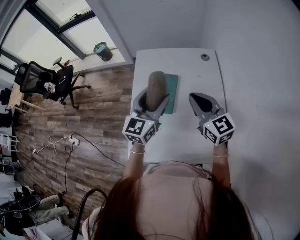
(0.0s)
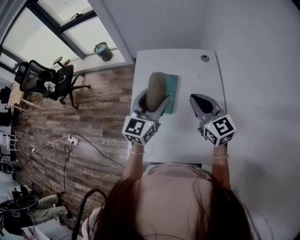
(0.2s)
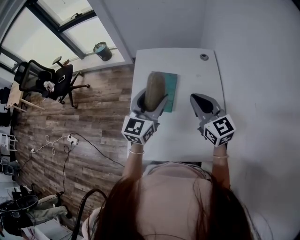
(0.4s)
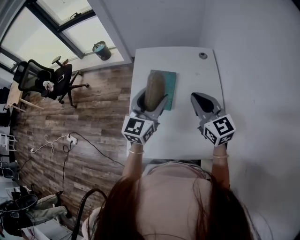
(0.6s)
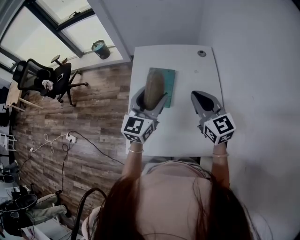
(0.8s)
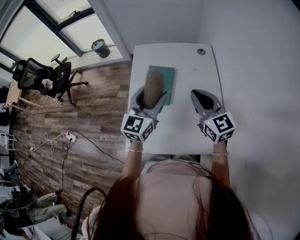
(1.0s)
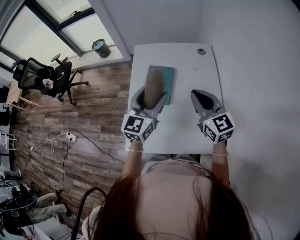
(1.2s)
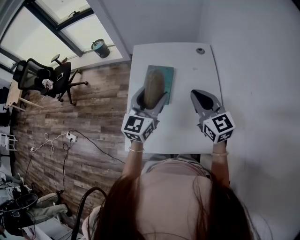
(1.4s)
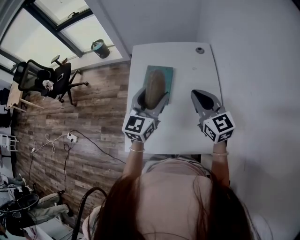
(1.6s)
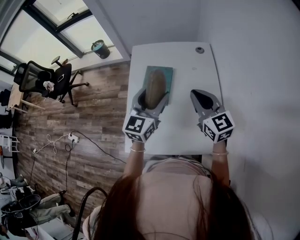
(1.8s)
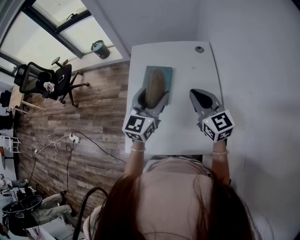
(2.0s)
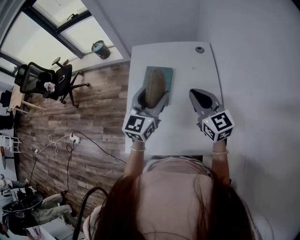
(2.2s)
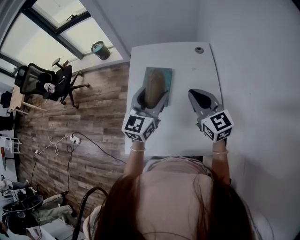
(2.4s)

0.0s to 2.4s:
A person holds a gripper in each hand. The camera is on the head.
0.0s to 2.4s: The grippers move only a little.

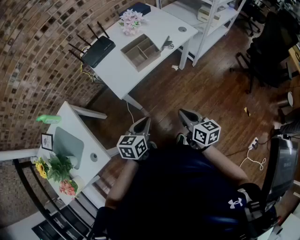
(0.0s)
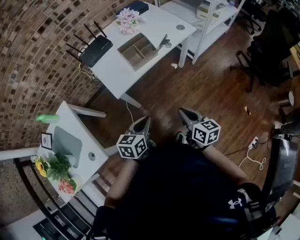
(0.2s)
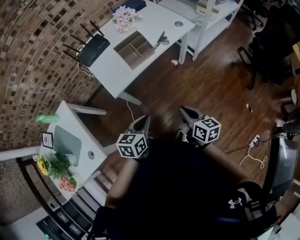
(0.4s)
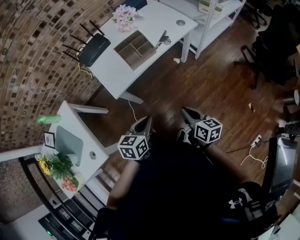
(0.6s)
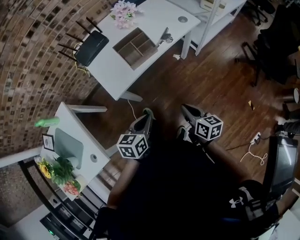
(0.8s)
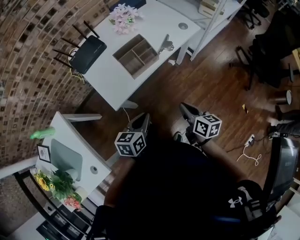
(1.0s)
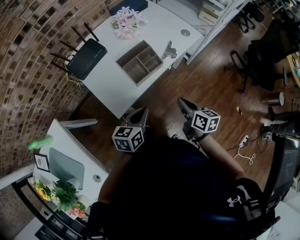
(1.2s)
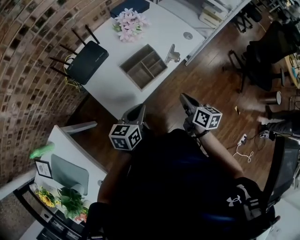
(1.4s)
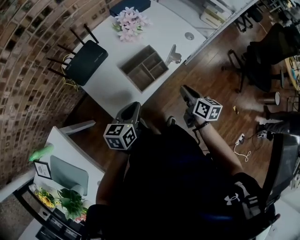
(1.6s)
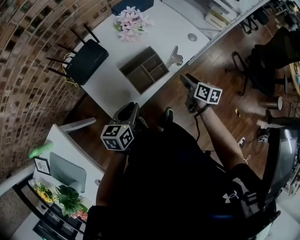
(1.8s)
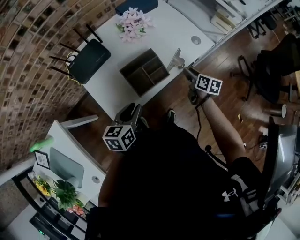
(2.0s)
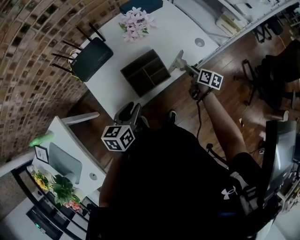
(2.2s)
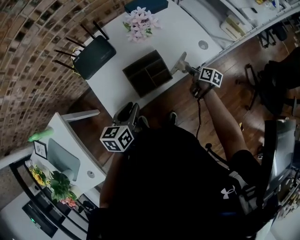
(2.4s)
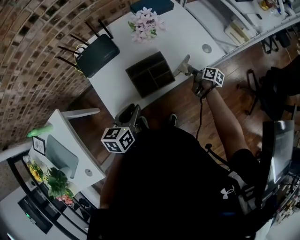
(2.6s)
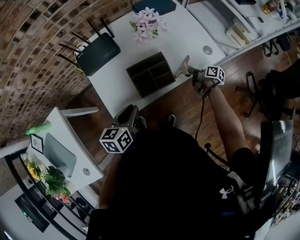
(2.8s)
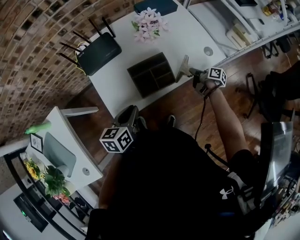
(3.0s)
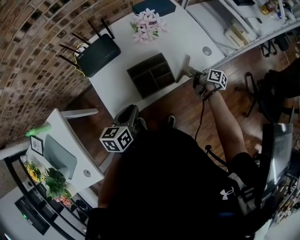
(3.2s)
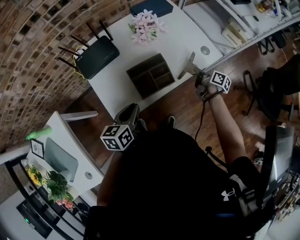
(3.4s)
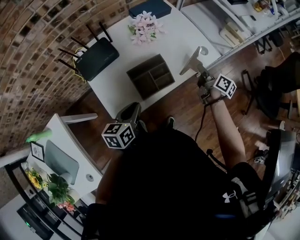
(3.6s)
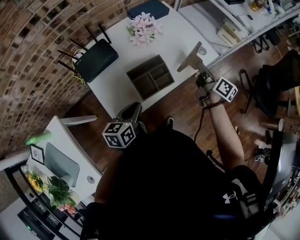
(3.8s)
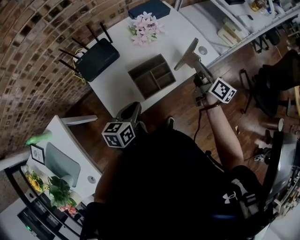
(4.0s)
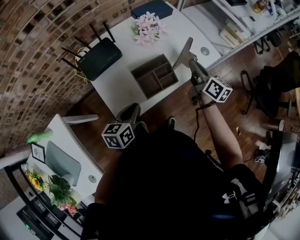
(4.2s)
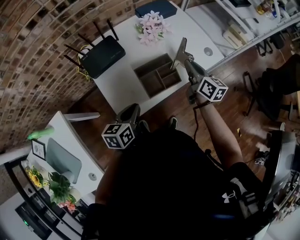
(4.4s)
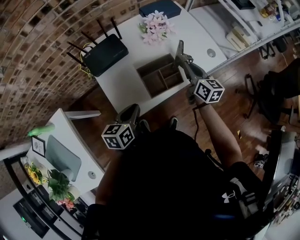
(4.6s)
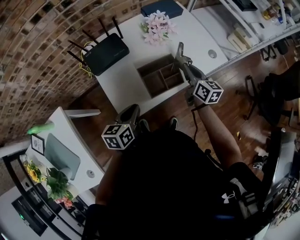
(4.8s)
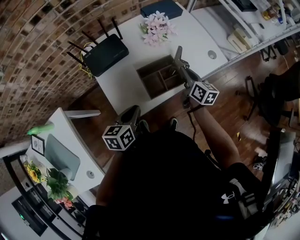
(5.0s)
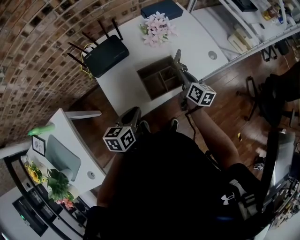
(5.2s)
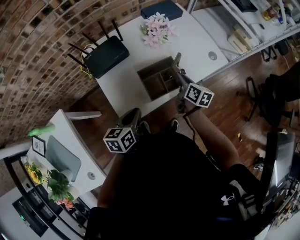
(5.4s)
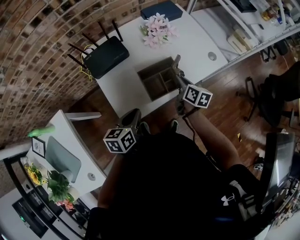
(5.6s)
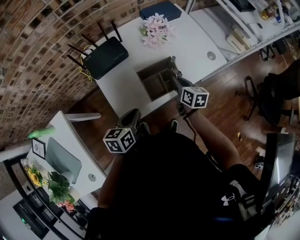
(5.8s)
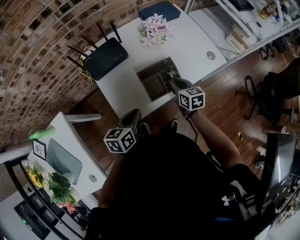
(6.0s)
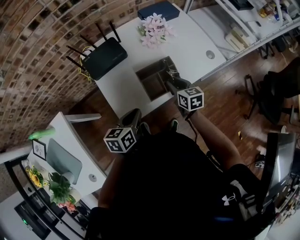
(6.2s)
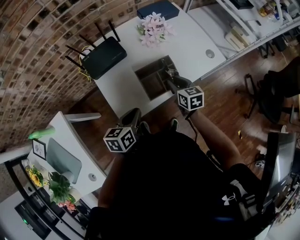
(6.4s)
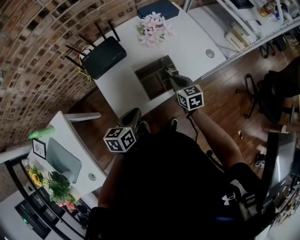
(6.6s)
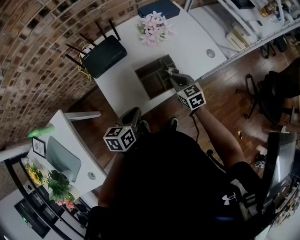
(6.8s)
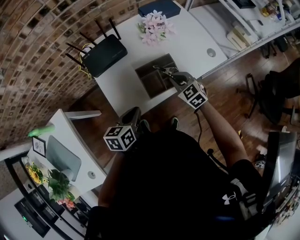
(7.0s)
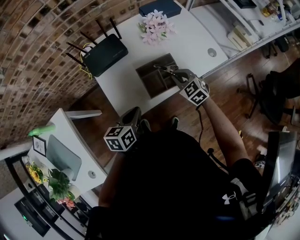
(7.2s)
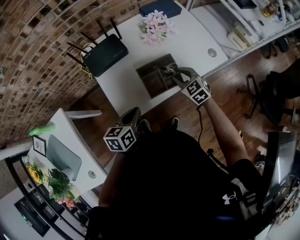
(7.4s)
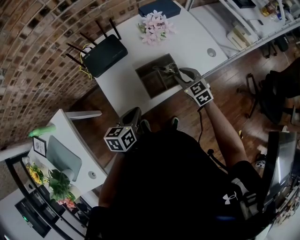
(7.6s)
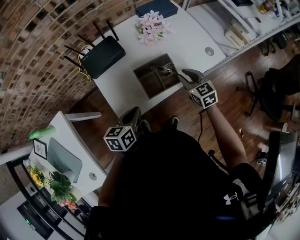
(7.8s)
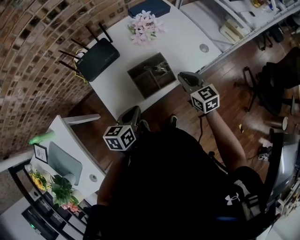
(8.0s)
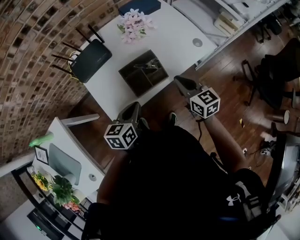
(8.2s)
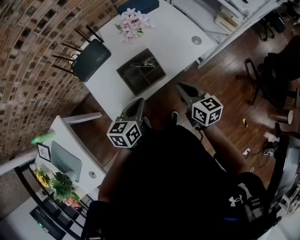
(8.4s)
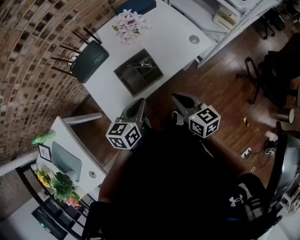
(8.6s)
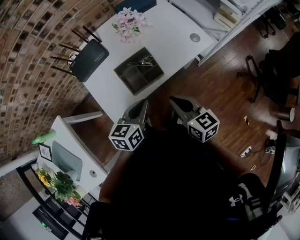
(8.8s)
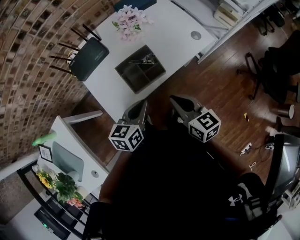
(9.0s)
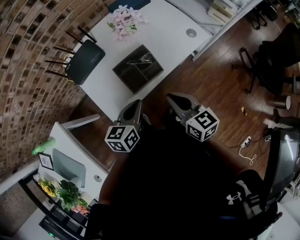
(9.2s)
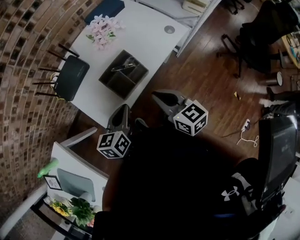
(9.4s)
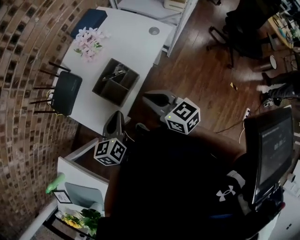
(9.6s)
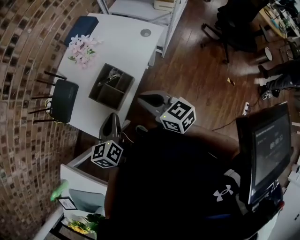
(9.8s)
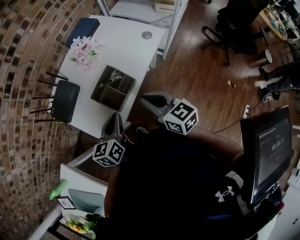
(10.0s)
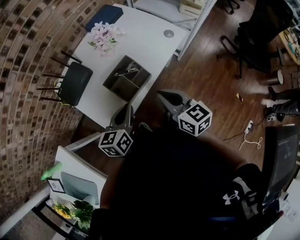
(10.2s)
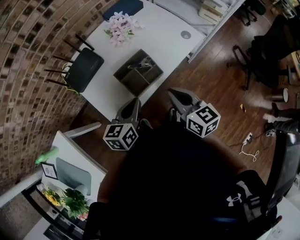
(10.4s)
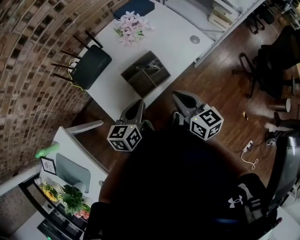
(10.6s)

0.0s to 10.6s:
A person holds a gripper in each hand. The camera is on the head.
0.0s to 1.6s: The two grippers go approximately 25 cm forward.
1.6s to 3.0s: The right gripper is displaced forward, downward and to the right by some 25 cm, rotates approximately 40 degrees, and opens and closes again.
3.0s to 4.6s: The right gripper is displaced upward and to the left by roughly 25 cm, and twists some 50 degrees counterclockwise, seen from behind.
4.6s to 6.0s: The right gripper shifts about 10 cm downward and to the left, and rotates roughly 20 degrees.
6.0s to 7.6s: The right gripper turns by roughly 30 degrees, and opens up.
7.6s to 9.0s: The left gripper is displaced to the right by approximately 10 cm, while the right gripper is displaced backward and upward by roughly 20 cm, rotates about 40 degrees, and closes its fingers.
9.0s to 10.6s: The left gripper shifts by approximately 5 cm.

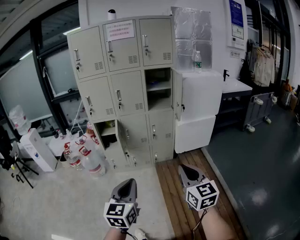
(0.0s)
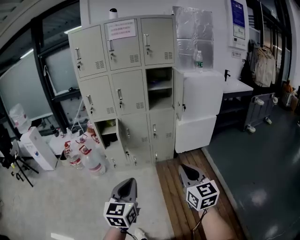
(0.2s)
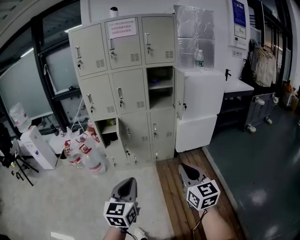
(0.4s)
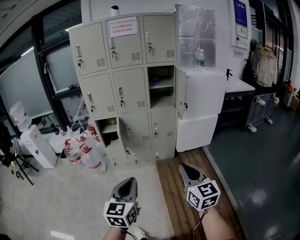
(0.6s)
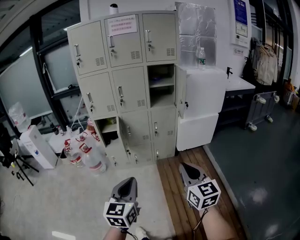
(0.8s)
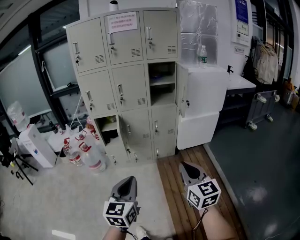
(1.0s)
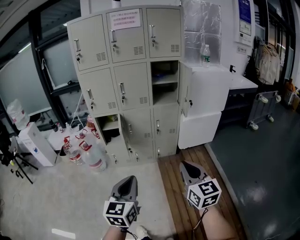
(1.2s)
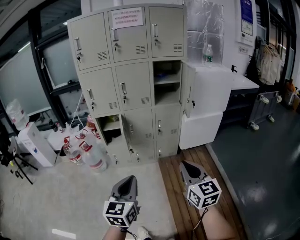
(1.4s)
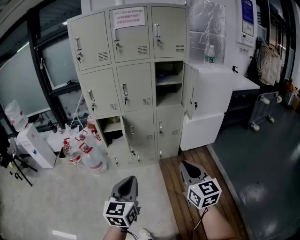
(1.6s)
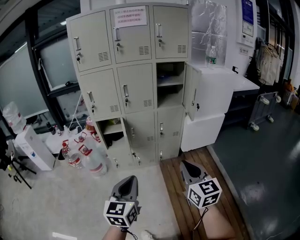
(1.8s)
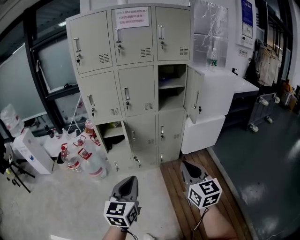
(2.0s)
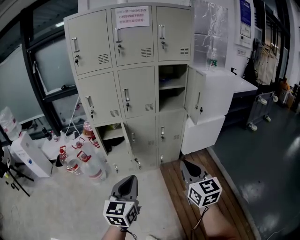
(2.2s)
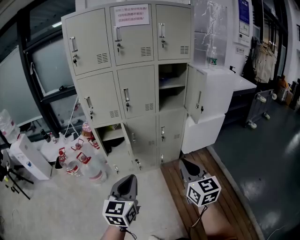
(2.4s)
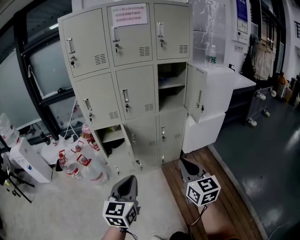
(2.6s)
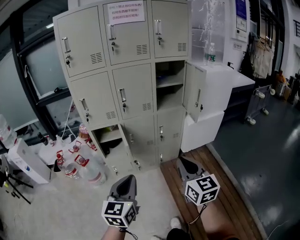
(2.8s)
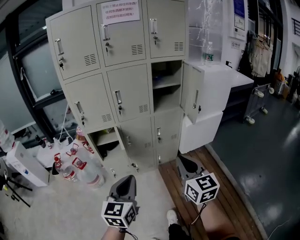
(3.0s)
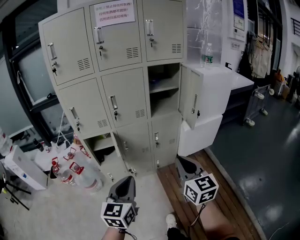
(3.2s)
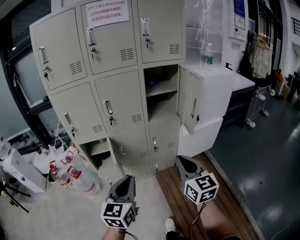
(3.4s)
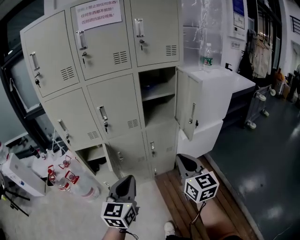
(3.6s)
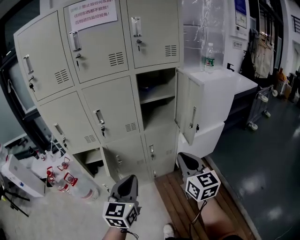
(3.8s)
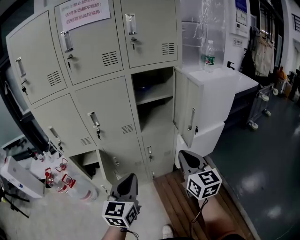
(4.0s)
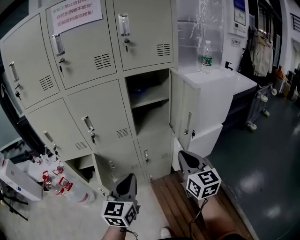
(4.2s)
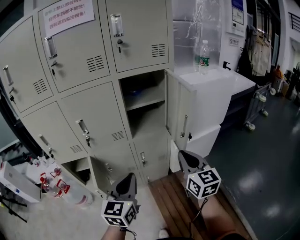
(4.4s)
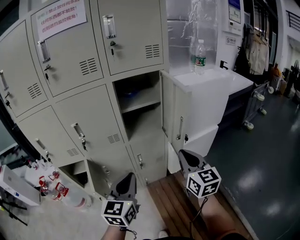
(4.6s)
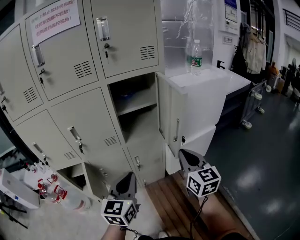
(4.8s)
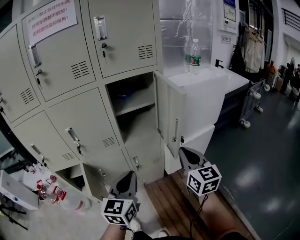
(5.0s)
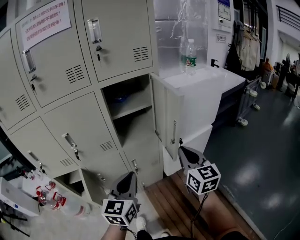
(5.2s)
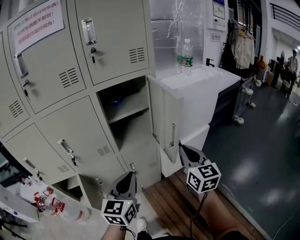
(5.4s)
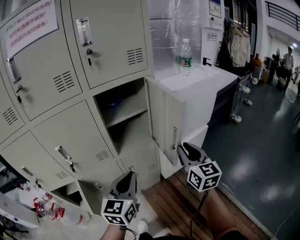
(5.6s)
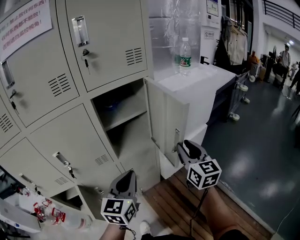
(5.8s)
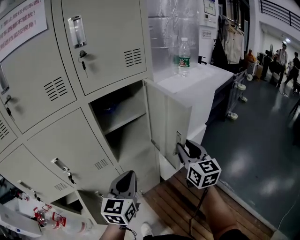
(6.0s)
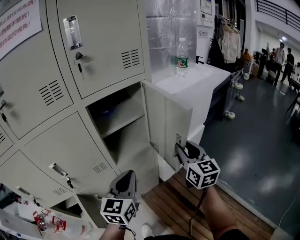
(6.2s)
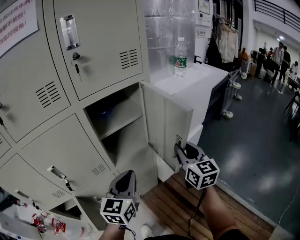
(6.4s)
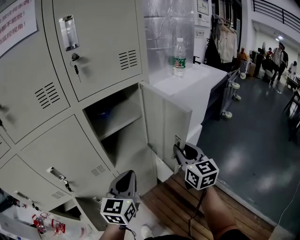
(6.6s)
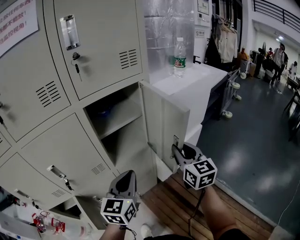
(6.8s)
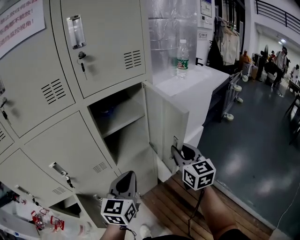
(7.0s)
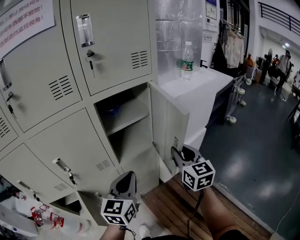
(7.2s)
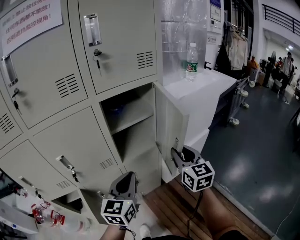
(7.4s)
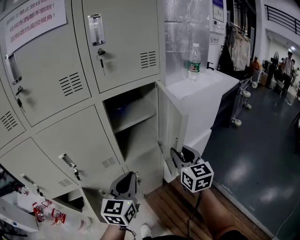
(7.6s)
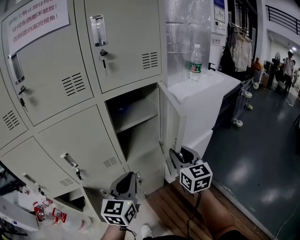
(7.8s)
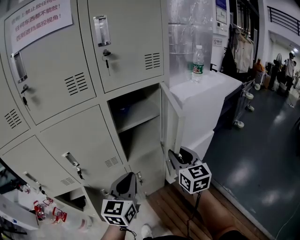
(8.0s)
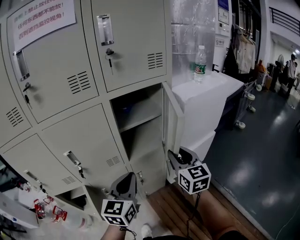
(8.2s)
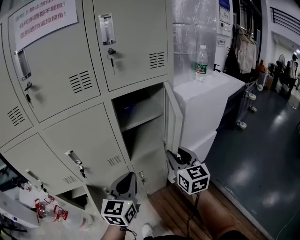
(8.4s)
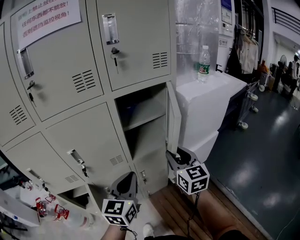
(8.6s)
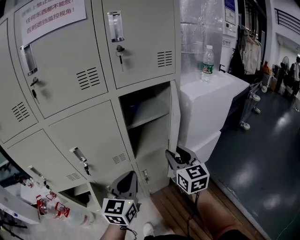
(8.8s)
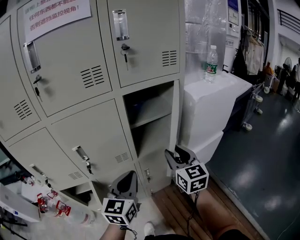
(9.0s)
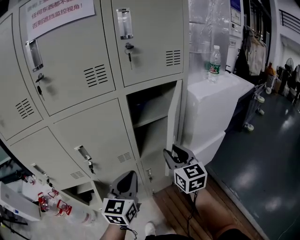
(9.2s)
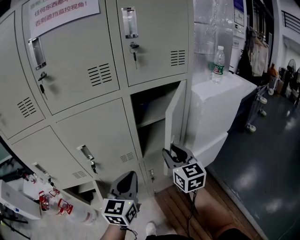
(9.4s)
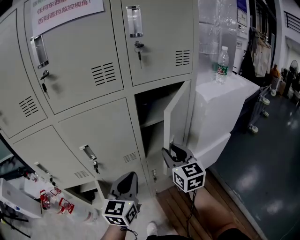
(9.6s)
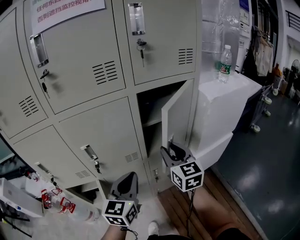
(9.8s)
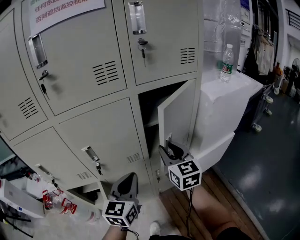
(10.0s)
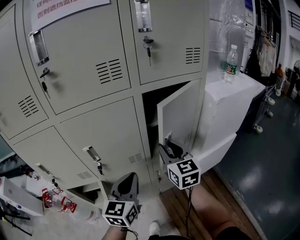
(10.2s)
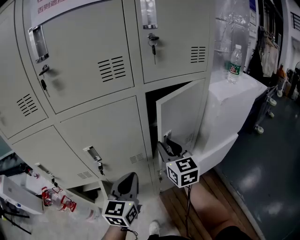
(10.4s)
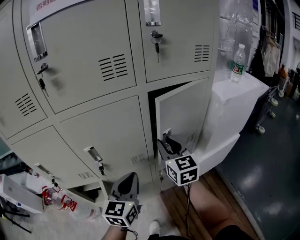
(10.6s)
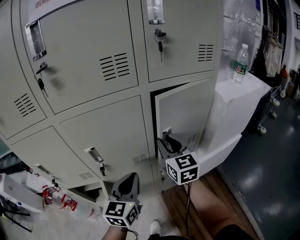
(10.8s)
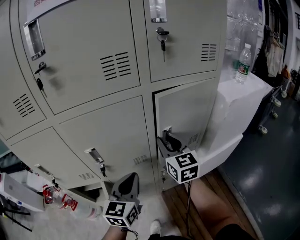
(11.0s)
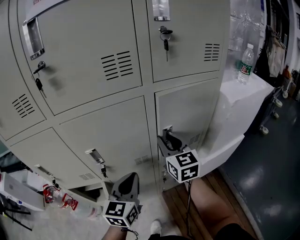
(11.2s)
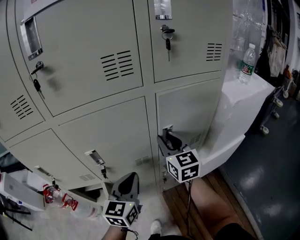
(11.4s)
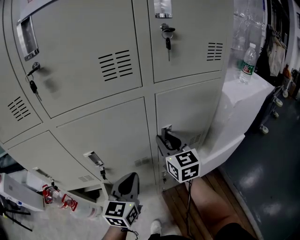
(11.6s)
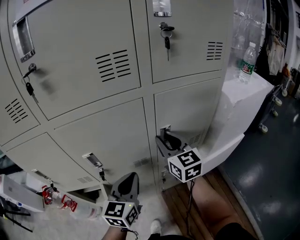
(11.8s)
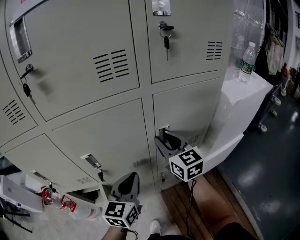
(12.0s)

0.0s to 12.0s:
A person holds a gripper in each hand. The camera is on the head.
0.0s to 1.6s: The two grippers go some 10 cm forward and to the left.
1.6s to 3.0s: The two grippers go roughly 15 cm forward and to the left.
3.0s to 4.4s: Both grippers move forward and to the right, about 35 cm.
4.4s to 6.0s: The two grippers go roughly 15 cm forward. The right gripper opens its fingers.
6.0s to 7.6s: The right gripper goes some 5 cm to the left.
7.6s to 9.0s: The right gripper heads to the left, covering roughly 10 cm; the left gripper is displaced to the left by roughly 5 cm.
9.0s to 10.4s: The left gripper shifts roughly 5 cm to the left; the right gripper heads to the left and forward, covering approximately 15 cm.
10.4s to 12.0s: The right gripper is displaced forward by about 5 cm; the left gripper shifts by about 5 cm.
